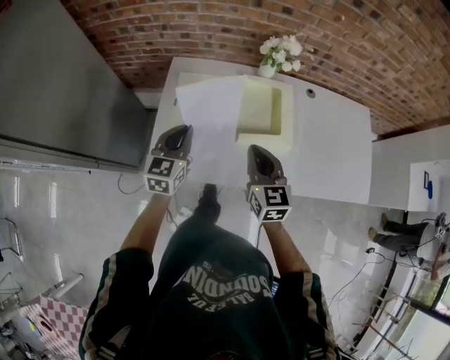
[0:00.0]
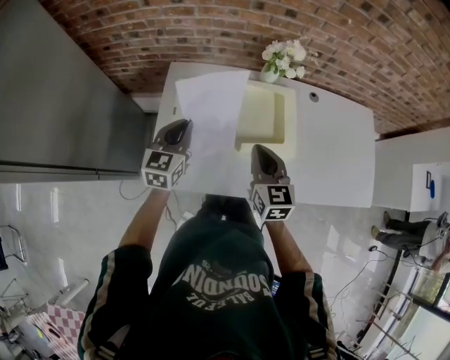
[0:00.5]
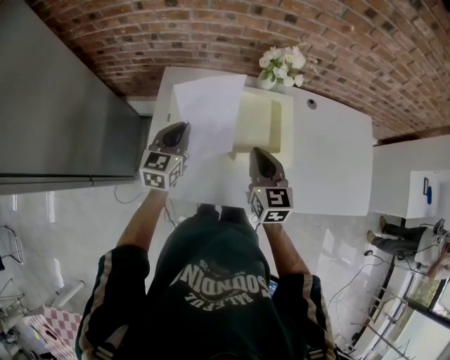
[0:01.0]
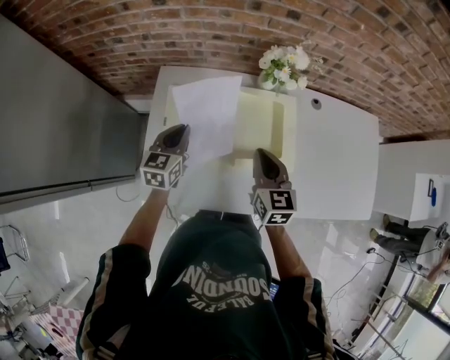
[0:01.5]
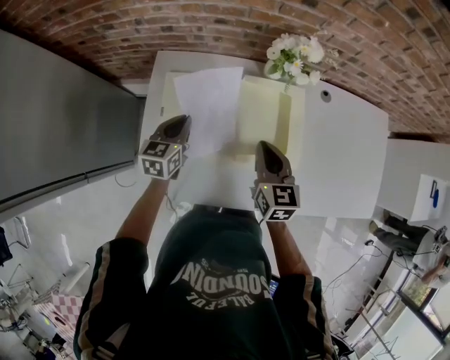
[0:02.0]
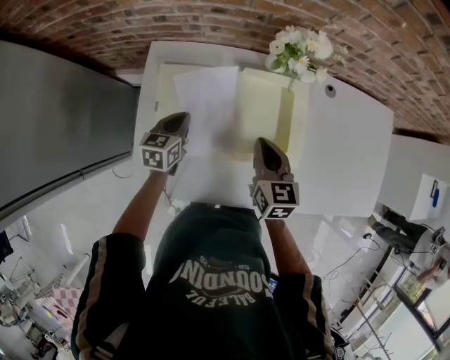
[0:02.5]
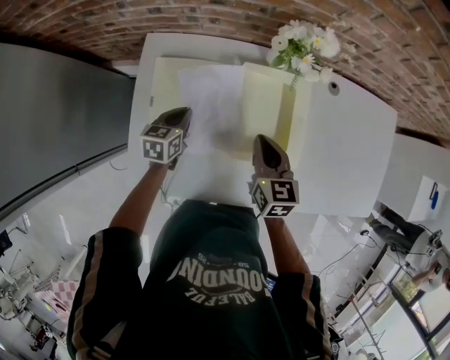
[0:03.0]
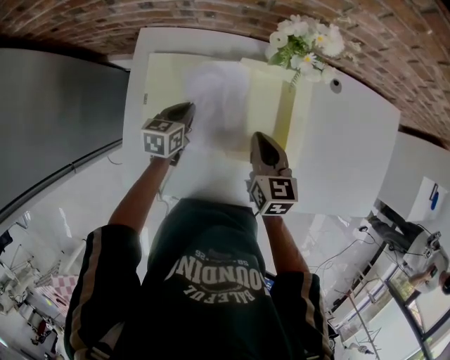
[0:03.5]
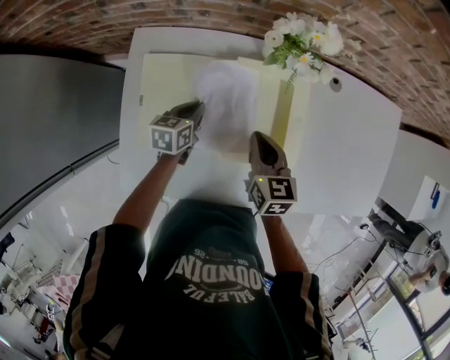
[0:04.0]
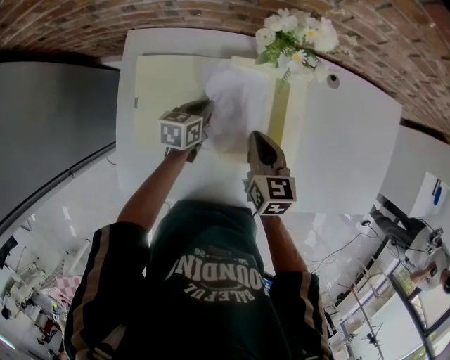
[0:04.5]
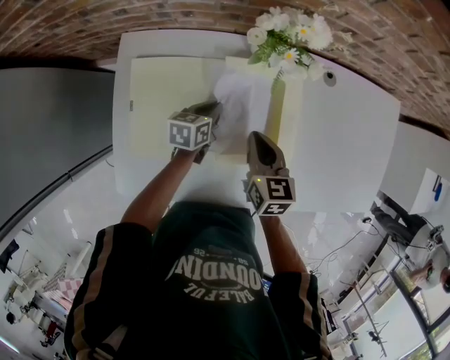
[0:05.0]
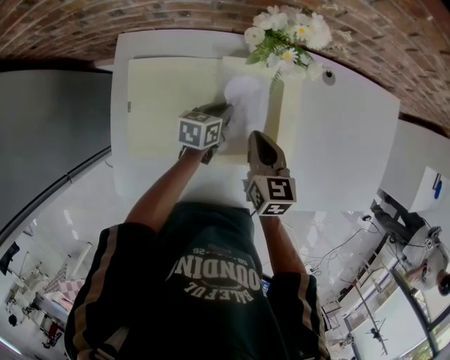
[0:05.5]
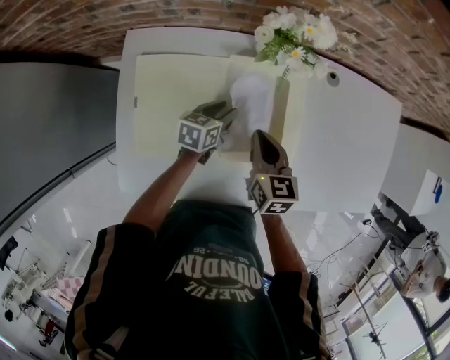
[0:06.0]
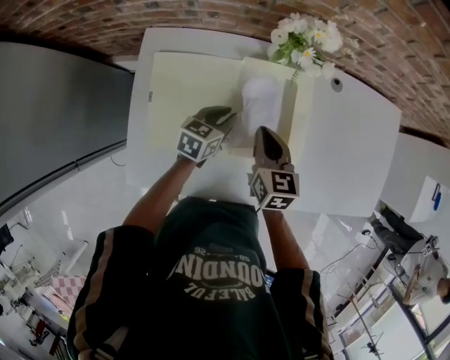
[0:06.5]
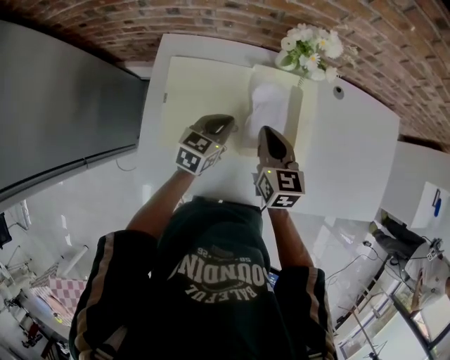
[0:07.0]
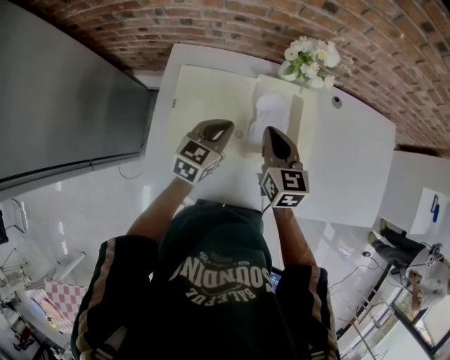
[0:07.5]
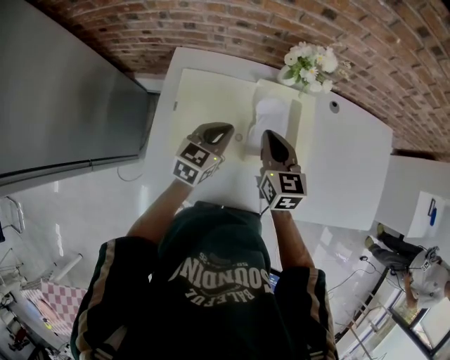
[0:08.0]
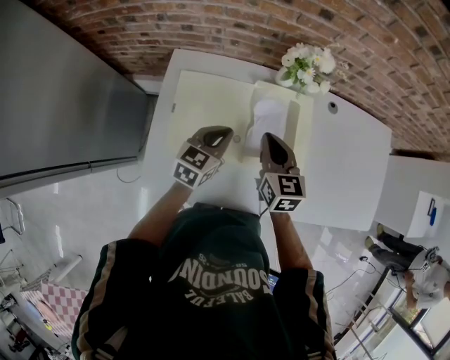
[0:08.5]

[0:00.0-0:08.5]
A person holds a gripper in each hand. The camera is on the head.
0:00.0 to 0:02.0: The two grippers go about 20 cm forward and downward.
0:02.0 to 0:04.0: The right gripper travels downward by approximately 10 cm, while the left gripper moves downward and to the right, about 15 cm, and rotates approximately 20 degrees.
0:04.0 to 0:06.5: The left gripper goes roughly 10 cm to the right.
0:06.5 to 0:08.5: The right gripper moves upward, approximately 5 cm; the left gripper travels upward, backward and to the left by roughly 15 cm.

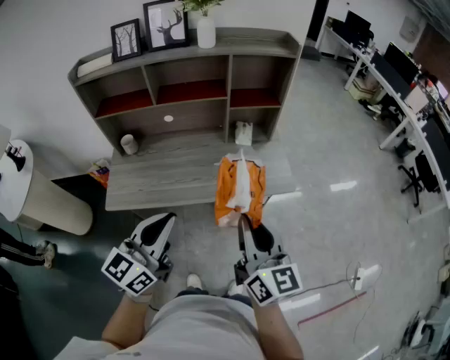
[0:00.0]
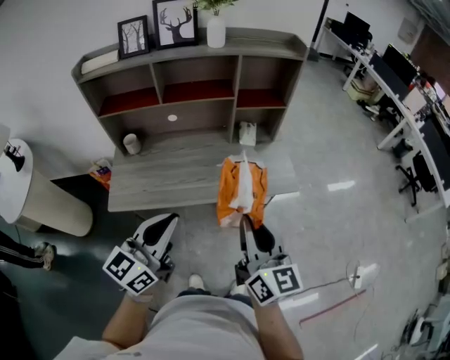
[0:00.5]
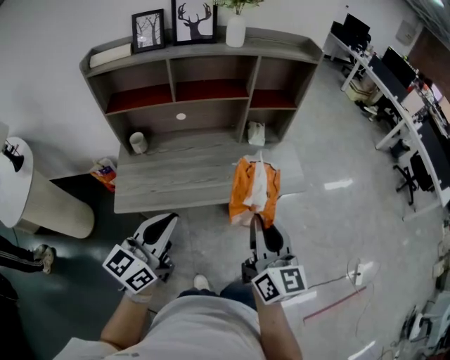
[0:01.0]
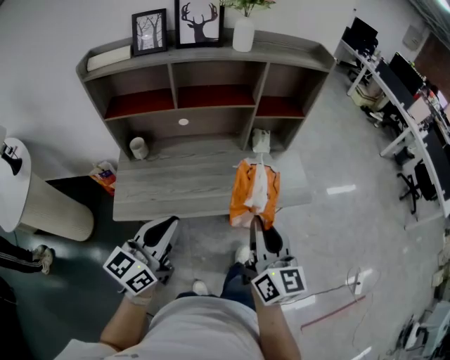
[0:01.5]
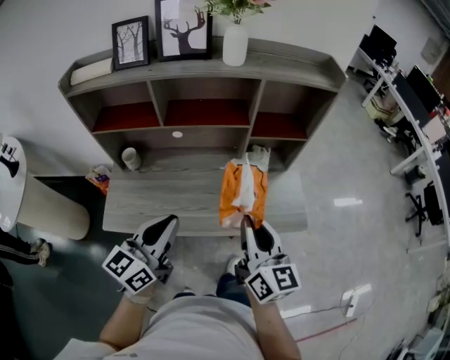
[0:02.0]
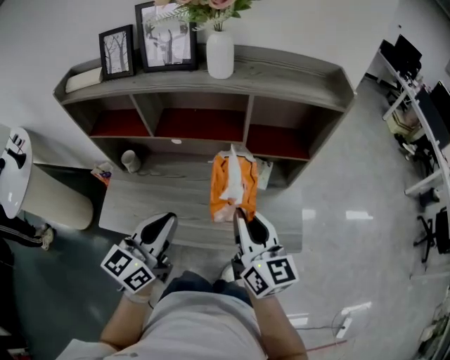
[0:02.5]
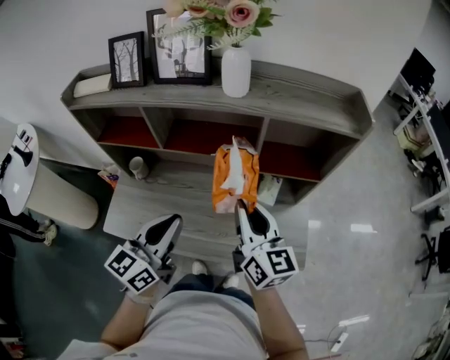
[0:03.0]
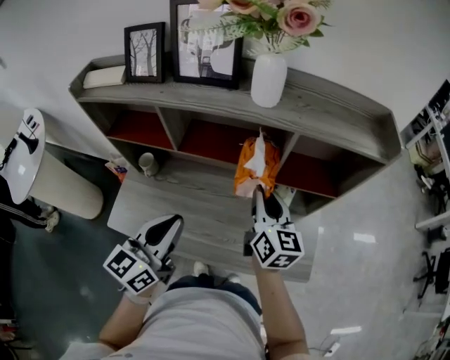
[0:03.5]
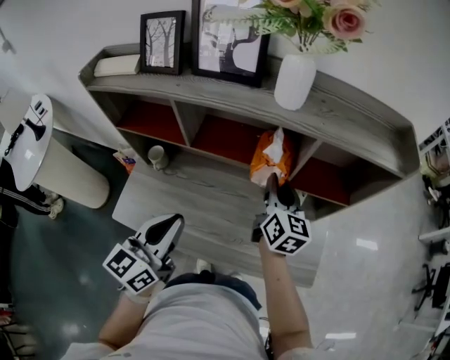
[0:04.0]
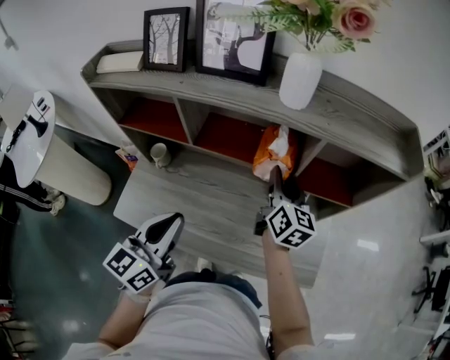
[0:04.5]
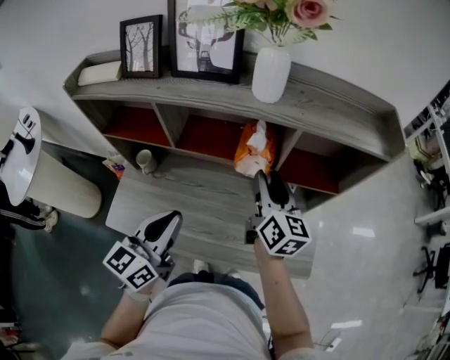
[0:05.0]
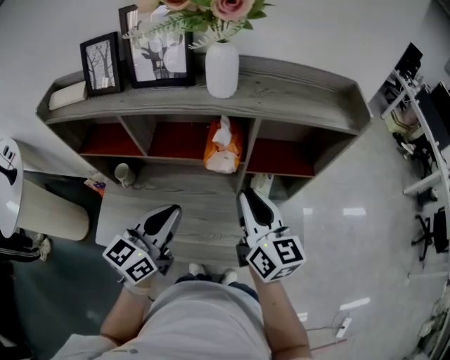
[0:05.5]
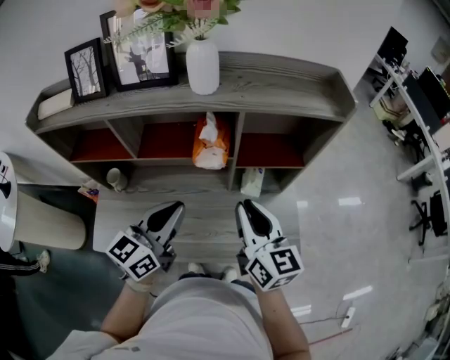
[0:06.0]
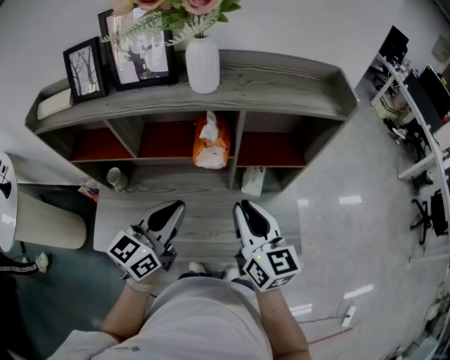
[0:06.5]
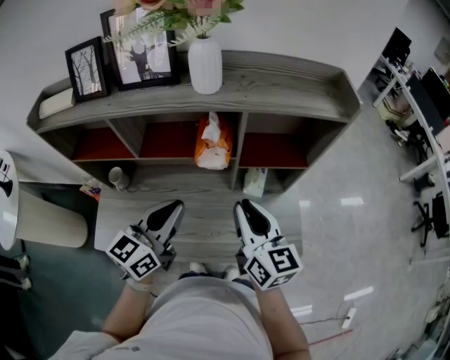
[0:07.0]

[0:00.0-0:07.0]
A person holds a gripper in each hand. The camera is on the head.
0:00.0 to 0:02.0: The right gripper moves forward, some 15 cm. Meanwhile the left gripper travels forward and to the left by some 15 cm.
0:02.0 to 0:03.5: The right gripper goes roughly 25 cm forward, while the left gripper moves forward, some 15 cm.
0:03.5 to 0:05.0: The right gripper opens.
0:05.0 to 0:07.0: The right gripper is displaced backward by approximately 10 cm, and closes up. Meanwhile the left gripper moves to the right, roughly 5 cm.

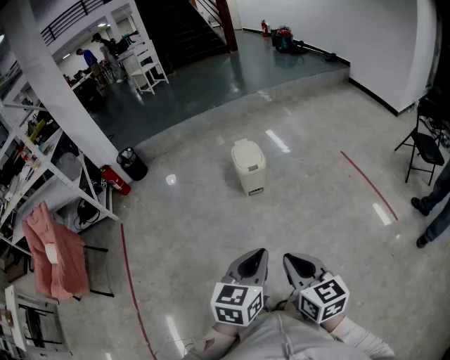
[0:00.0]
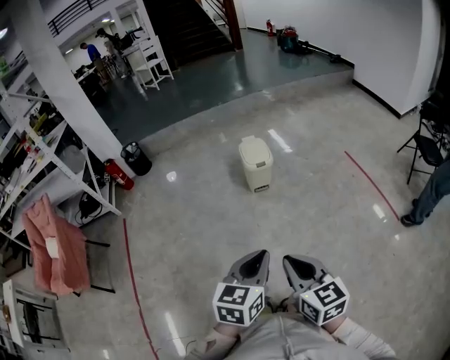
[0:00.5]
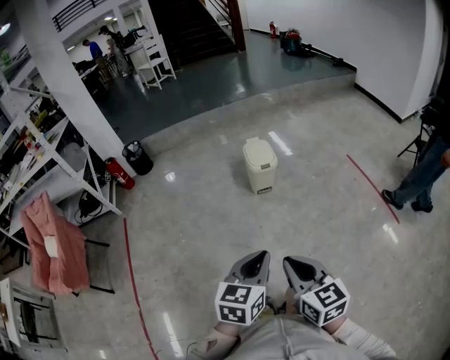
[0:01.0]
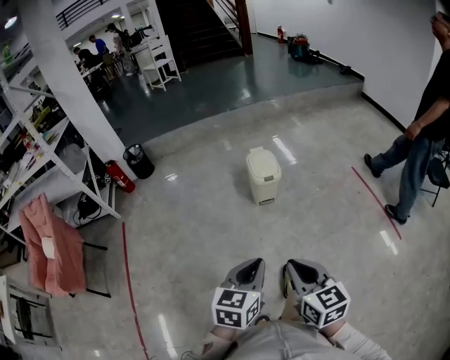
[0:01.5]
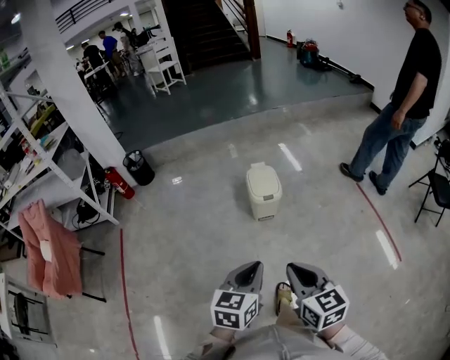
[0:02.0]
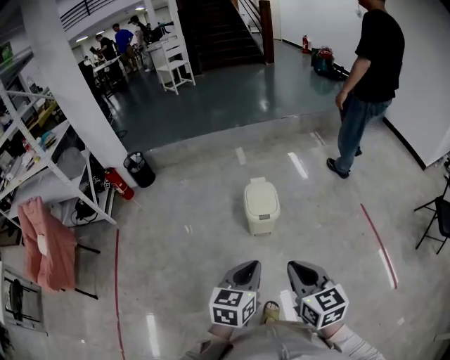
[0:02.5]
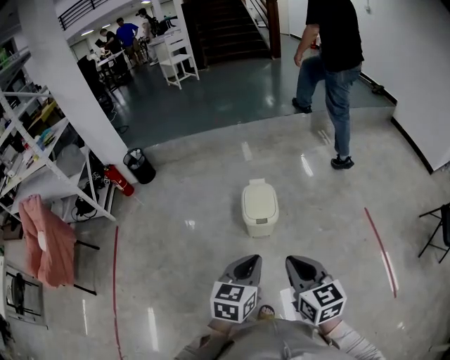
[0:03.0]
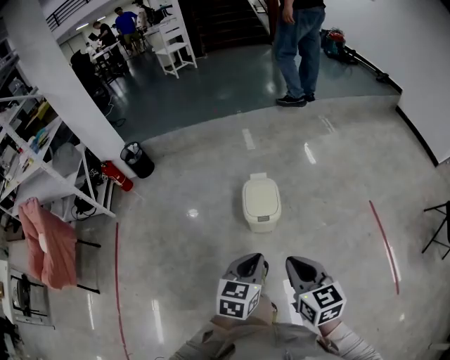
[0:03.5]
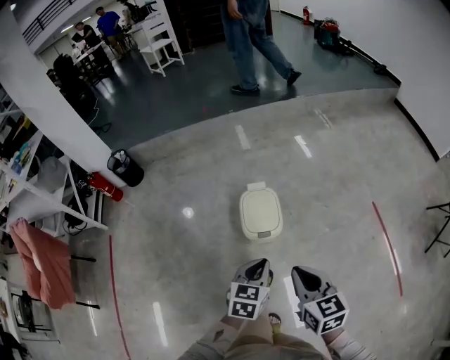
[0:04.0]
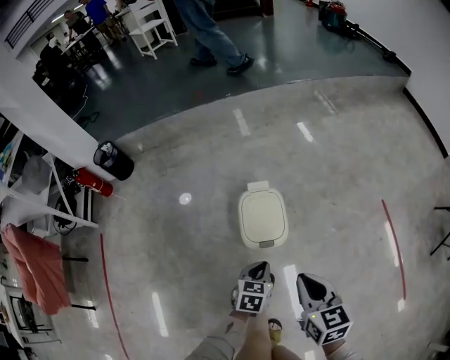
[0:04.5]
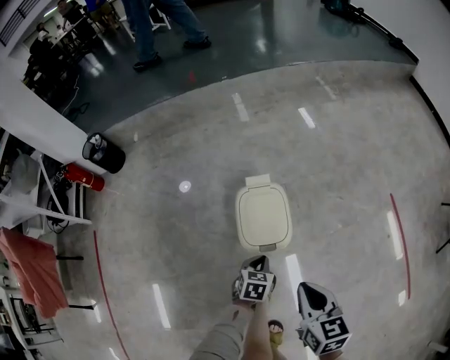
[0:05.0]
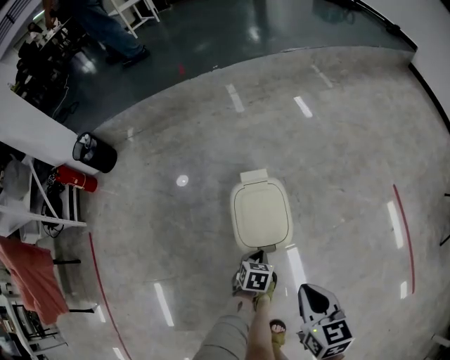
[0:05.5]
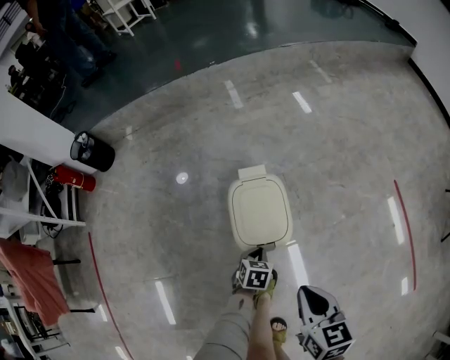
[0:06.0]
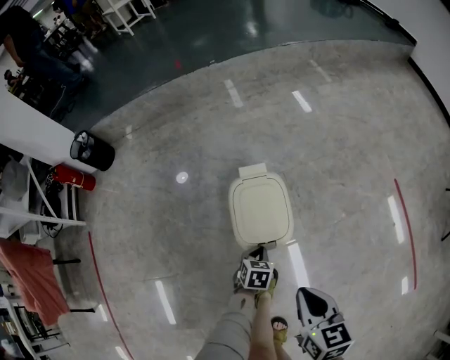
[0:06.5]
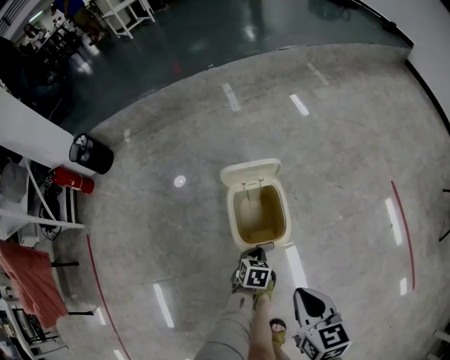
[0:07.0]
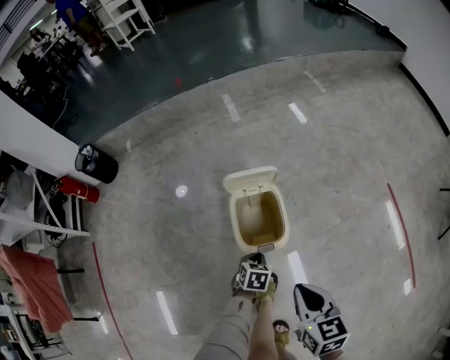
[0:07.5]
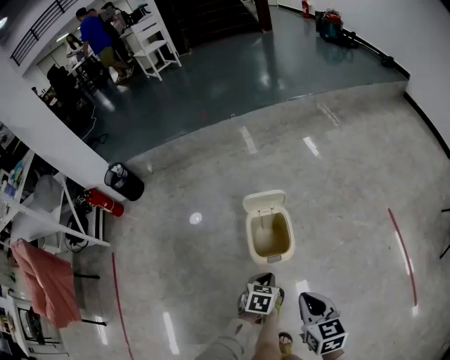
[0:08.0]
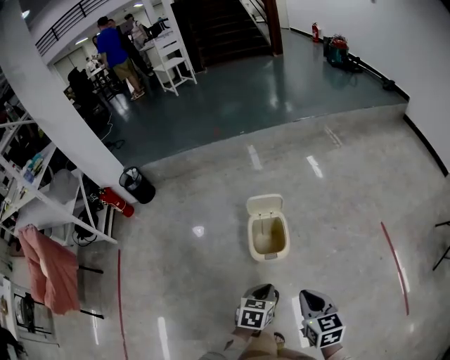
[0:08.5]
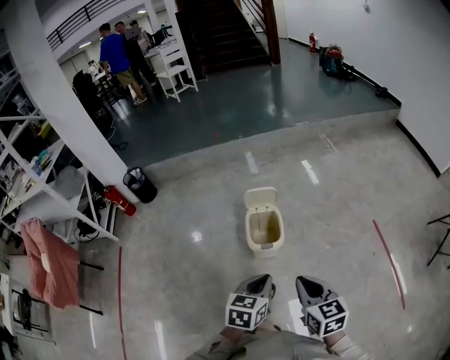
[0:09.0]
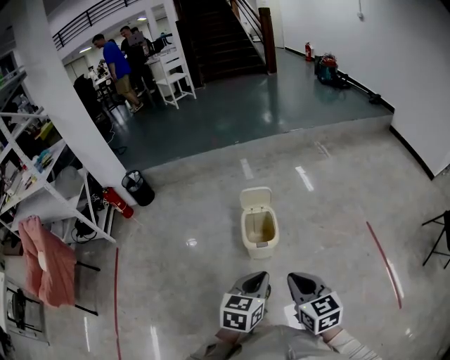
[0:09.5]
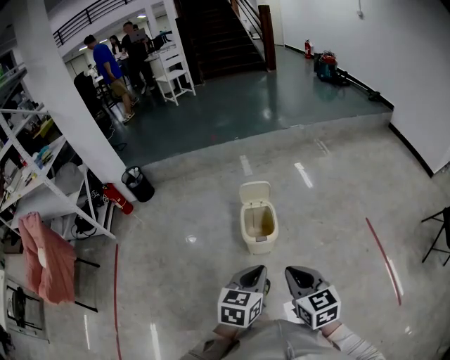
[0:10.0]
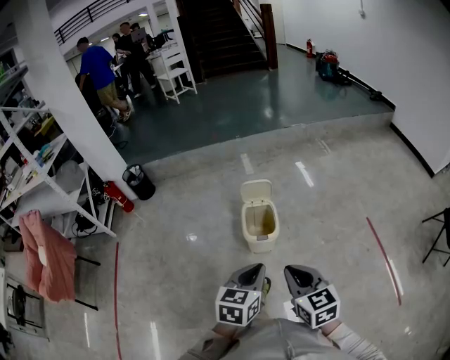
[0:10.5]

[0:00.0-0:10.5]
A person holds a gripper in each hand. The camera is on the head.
0:00.0 to 0:02.0: The grippers both shift forward by about 15 cm.
0:02.0 to 0:04.0: The grippers both shift forward by about 35 cm.
0:04.0 to 0:06.5: The right gripper travels downward and forward by approximately 25 cm; the left gripper is displaced downward by approximately 40 cm, and turns by about 30 degrees.
0:06.5 to 0:08.5: The left gripper travels upward and backward by roughly 35 cm, while the right gripper heads upward and backward, covering some 20 cm.
0:08.5 to 0:10.5: The left gripper goes roughly 20 cm upward and backward; the right gripper goes approximately 15 cm backward and upward.

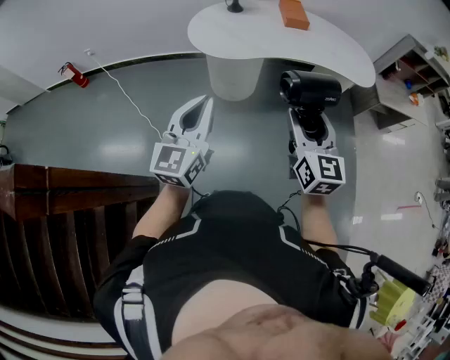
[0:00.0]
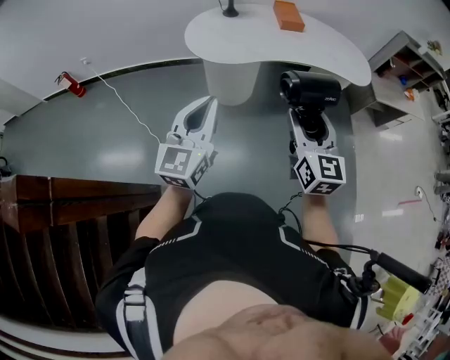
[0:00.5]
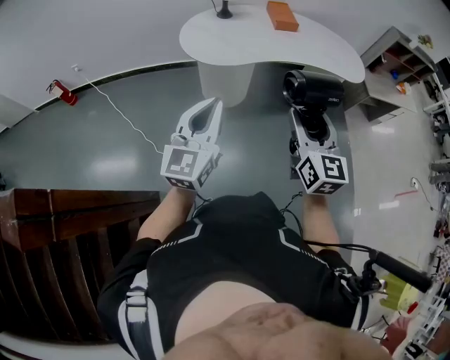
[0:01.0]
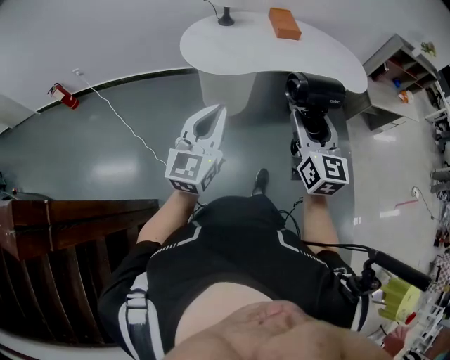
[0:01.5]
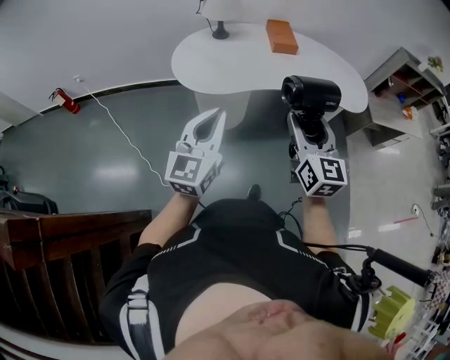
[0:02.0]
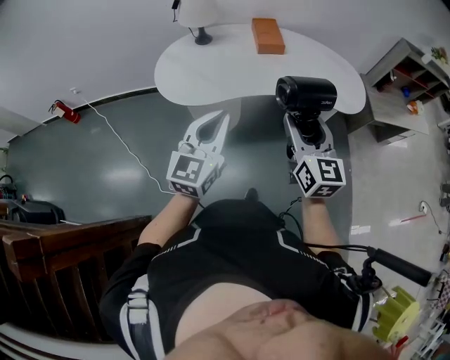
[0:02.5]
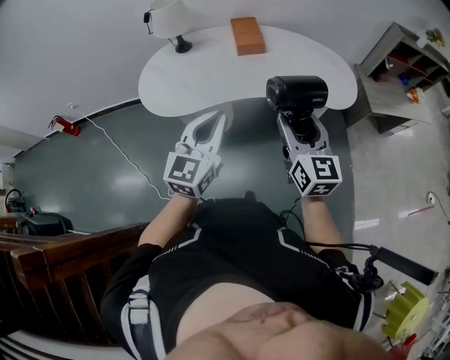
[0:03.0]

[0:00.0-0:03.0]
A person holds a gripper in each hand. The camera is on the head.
0:00.0 to 0:01.5: The grippers make only small movements.
0:01.5 to 0:03.0: The left gripper shifts roughly 35 cm to the right and forward. Meanwhile the right gripper heads forward and to the right, covering approximately 30 cm.
